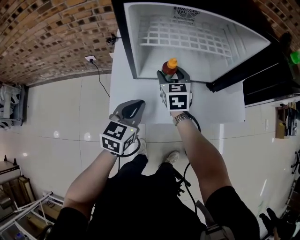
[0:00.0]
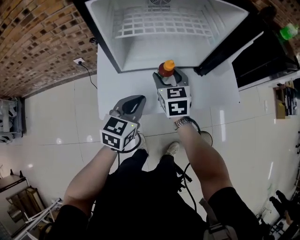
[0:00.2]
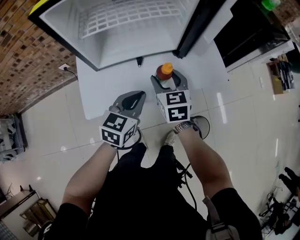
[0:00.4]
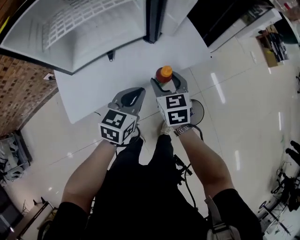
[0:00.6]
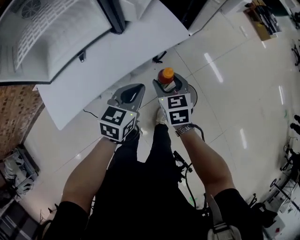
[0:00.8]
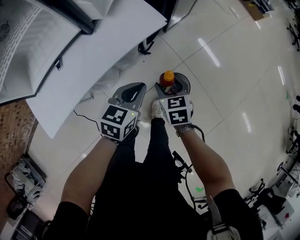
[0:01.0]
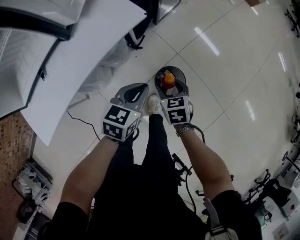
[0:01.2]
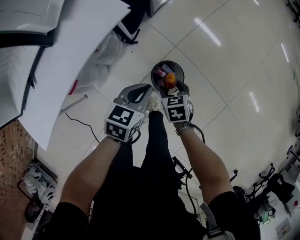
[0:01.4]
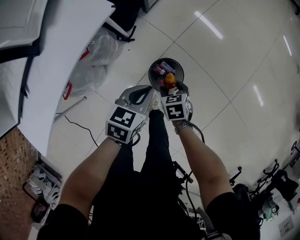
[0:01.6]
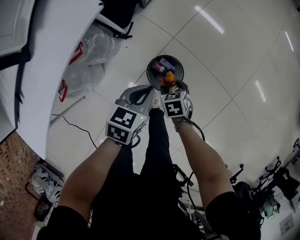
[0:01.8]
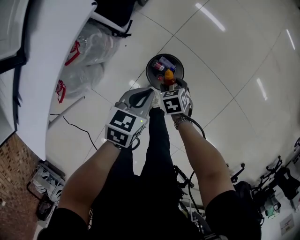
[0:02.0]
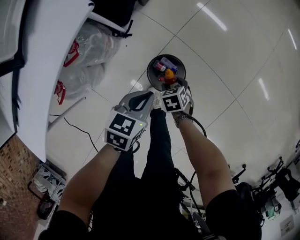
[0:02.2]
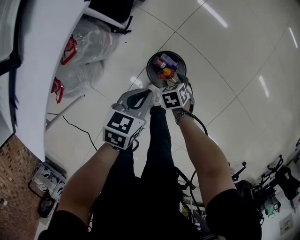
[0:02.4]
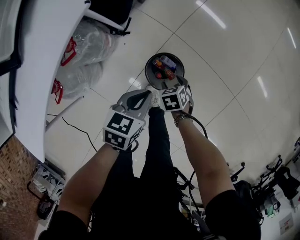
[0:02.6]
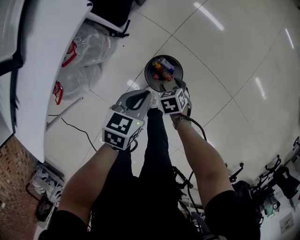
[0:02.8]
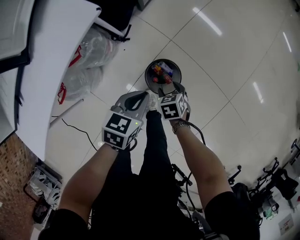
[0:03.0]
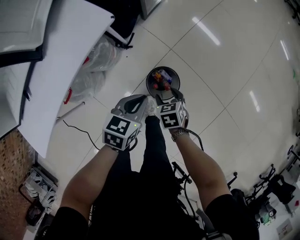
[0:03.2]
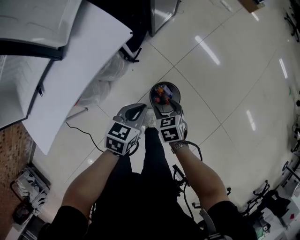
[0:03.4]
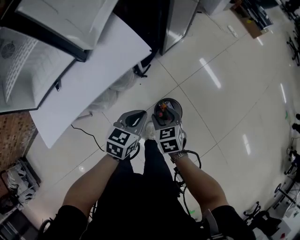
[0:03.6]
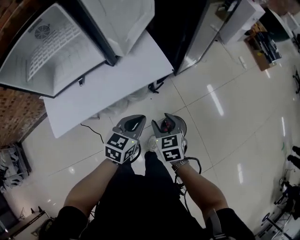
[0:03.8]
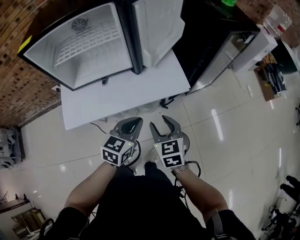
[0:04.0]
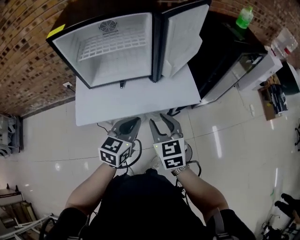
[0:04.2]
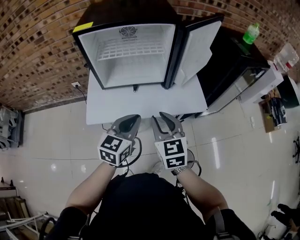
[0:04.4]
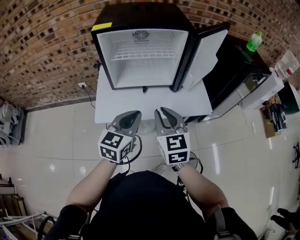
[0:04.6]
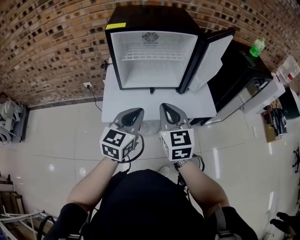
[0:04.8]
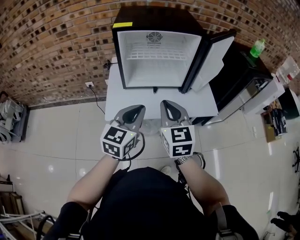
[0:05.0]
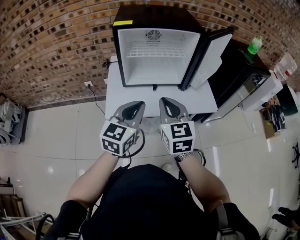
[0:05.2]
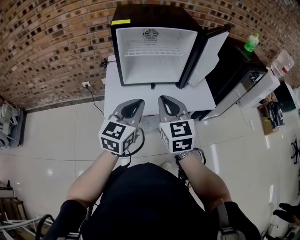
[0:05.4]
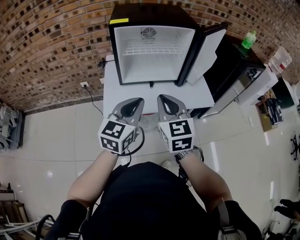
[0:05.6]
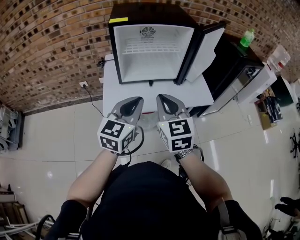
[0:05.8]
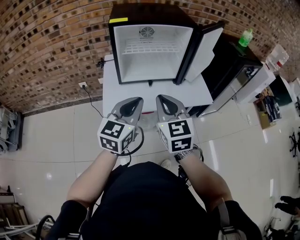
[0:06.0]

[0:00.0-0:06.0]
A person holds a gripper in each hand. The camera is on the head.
0:00.0 to 0:01.6: The pair of grippers is taken approximately 60 cm. The right gripper tilts its fingers roughly 30 degrees downward. Meanwhile the left gripper rotates approximately 60 degrees.
0:03.0 to 0:04.4: The two grippers go about 40 cm upward. The right gripper tilts its fingers roughly 50 degrees upward, and closes its fingers, while the left gripper rotates approximately 60 degrees.
0:04.4 to 0:06.0: Both grippers move to the left, upward and backward, roughly 15 cm.

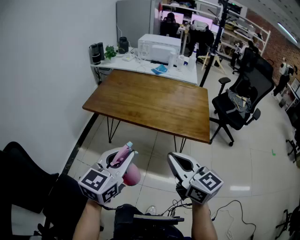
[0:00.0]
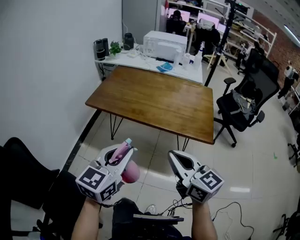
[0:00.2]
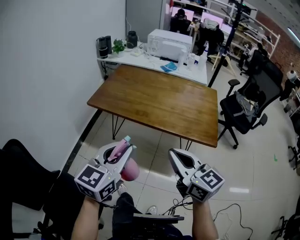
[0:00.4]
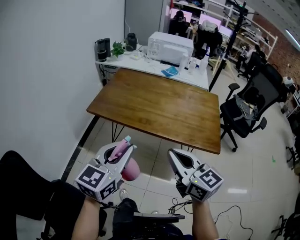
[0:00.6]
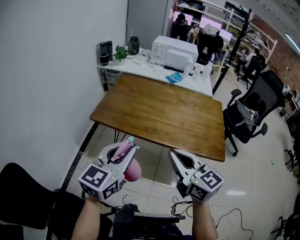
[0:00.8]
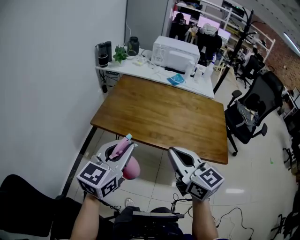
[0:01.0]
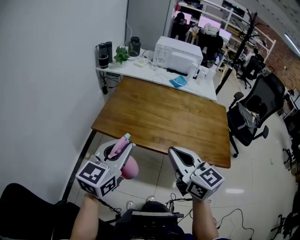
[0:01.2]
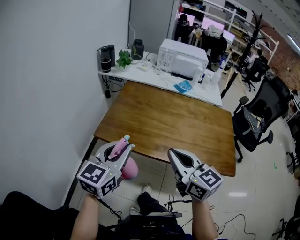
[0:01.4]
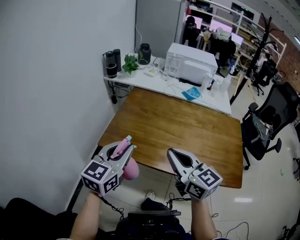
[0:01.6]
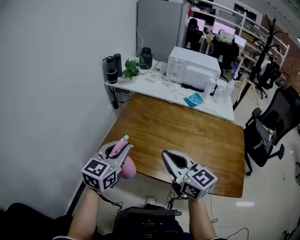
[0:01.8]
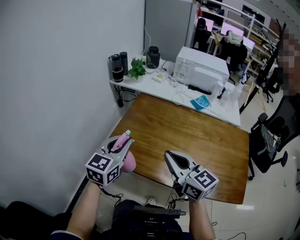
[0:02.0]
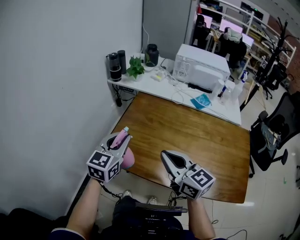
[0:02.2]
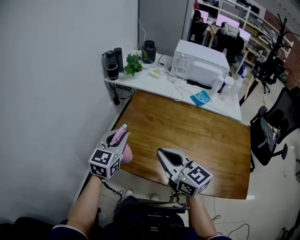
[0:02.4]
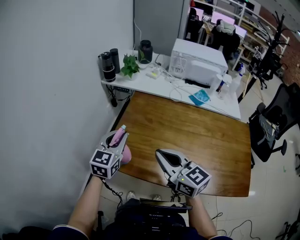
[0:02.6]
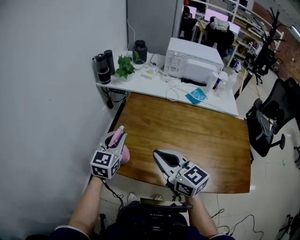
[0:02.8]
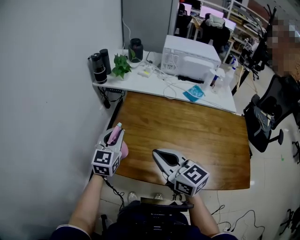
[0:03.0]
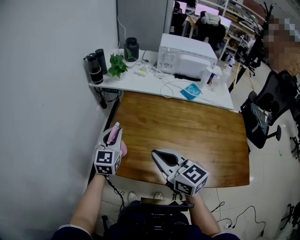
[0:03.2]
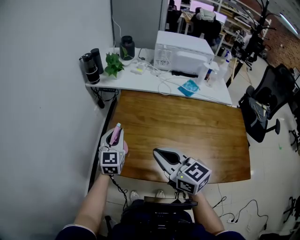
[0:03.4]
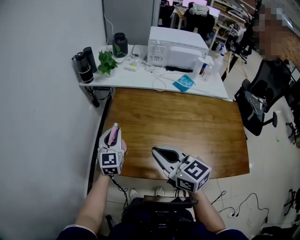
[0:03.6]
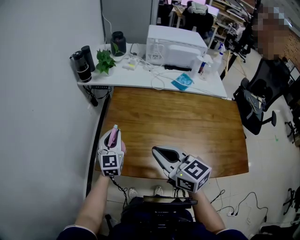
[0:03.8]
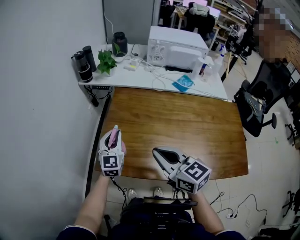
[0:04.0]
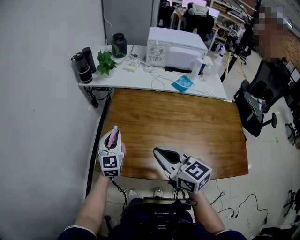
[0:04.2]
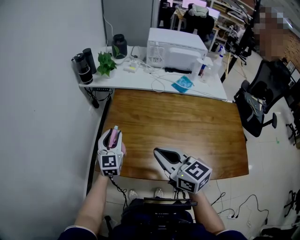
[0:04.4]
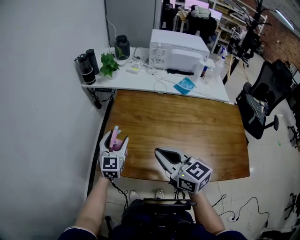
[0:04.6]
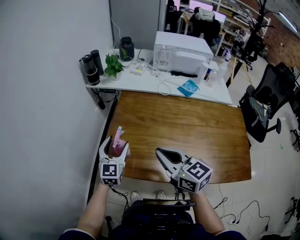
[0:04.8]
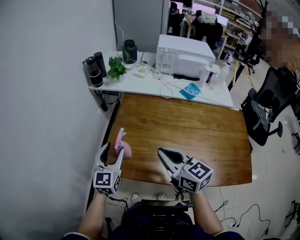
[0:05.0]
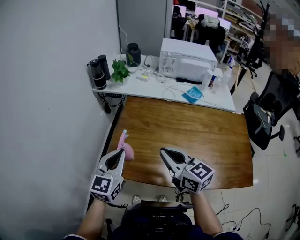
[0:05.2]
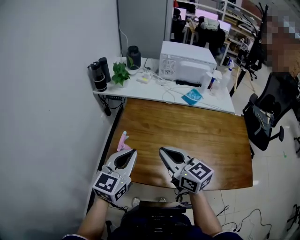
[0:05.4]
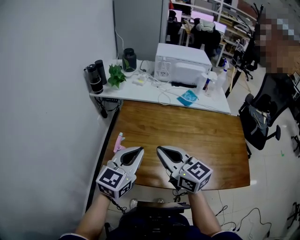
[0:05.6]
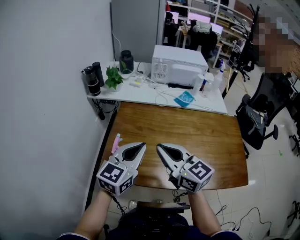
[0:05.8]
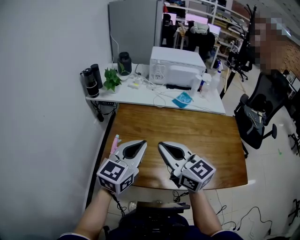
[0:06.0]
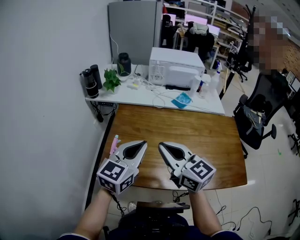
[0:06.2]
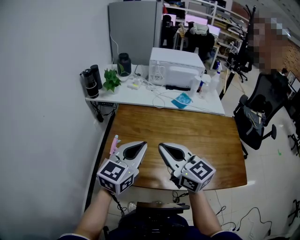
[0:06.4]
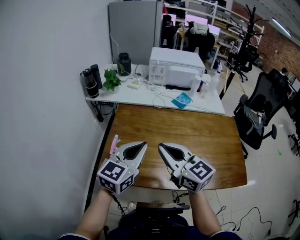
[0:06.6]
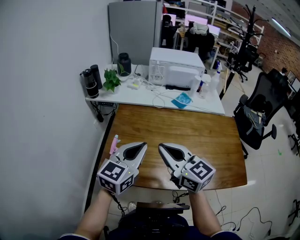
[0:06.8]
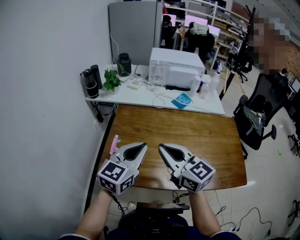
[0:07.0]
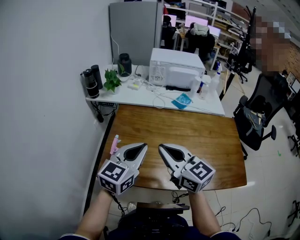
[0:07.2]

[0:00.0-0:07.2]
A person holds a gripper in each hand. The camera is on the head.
0:00.0 to 0:01.4: Both grippers travel together forward and to the left, approximately 35 cm.
0:01.4 to 0:02.8: Both grippers move forward, some 25 cm.
0:02.8 to 0:04.4: The left gripper shifts about 5 cm downward.
0:04.4 to 0:05.8: The right gripper travels upward by about 5 cm. Meanwhile the left gripper travels upward, backward and to the right by approximately 20 cm, turns by roughly 30 degrees, and closes up.
0:05.8 to 0:07.2: The grippers move only a little.

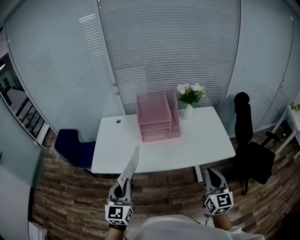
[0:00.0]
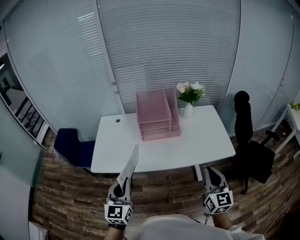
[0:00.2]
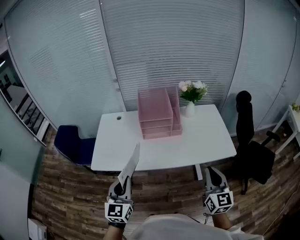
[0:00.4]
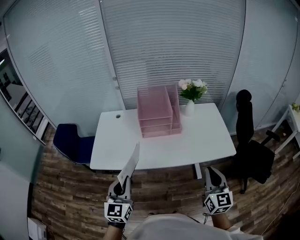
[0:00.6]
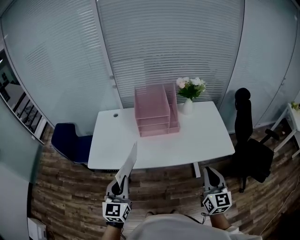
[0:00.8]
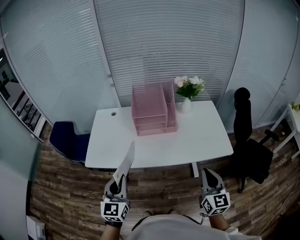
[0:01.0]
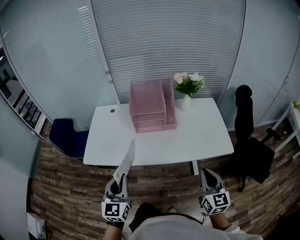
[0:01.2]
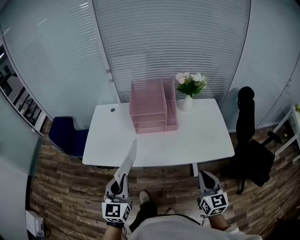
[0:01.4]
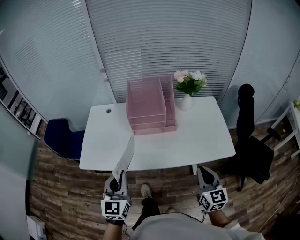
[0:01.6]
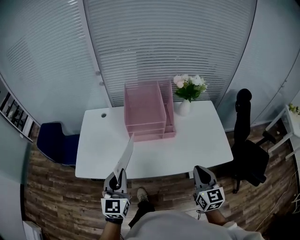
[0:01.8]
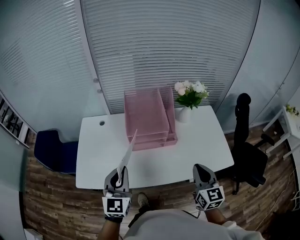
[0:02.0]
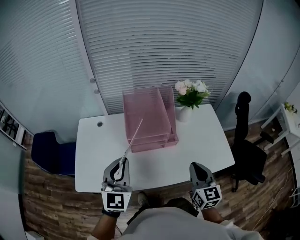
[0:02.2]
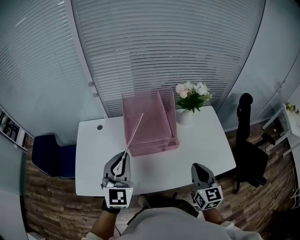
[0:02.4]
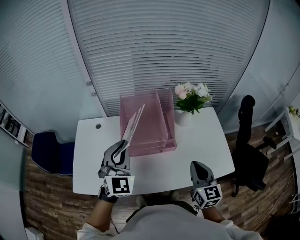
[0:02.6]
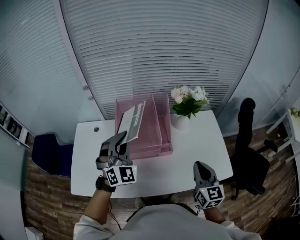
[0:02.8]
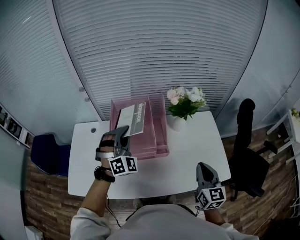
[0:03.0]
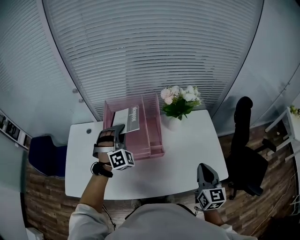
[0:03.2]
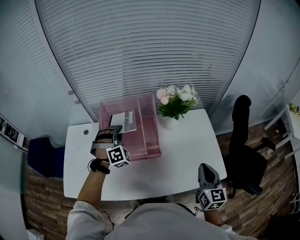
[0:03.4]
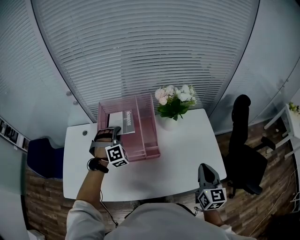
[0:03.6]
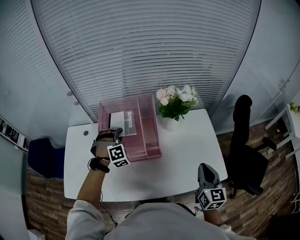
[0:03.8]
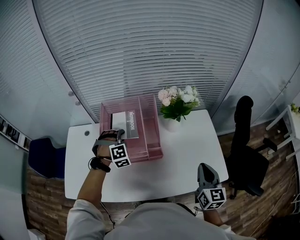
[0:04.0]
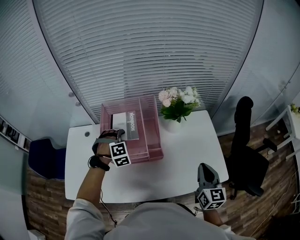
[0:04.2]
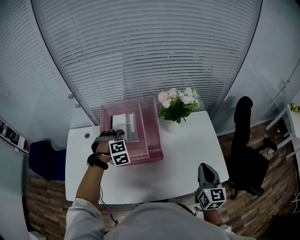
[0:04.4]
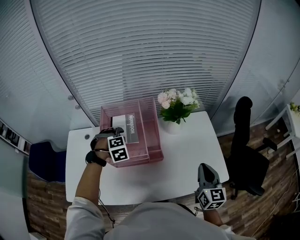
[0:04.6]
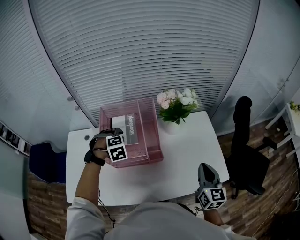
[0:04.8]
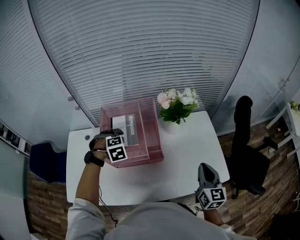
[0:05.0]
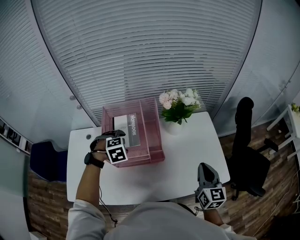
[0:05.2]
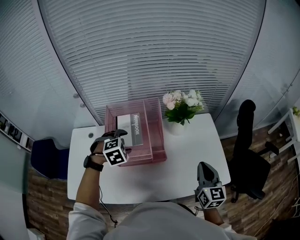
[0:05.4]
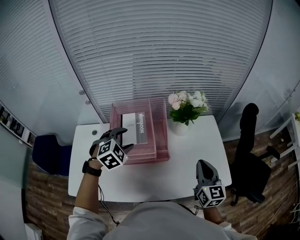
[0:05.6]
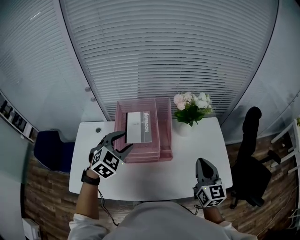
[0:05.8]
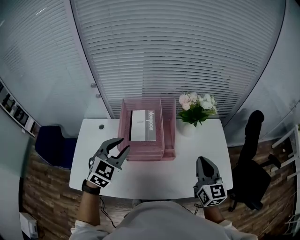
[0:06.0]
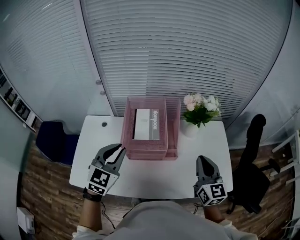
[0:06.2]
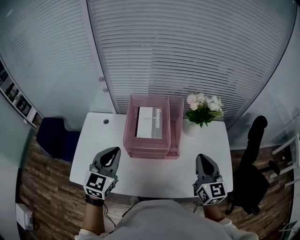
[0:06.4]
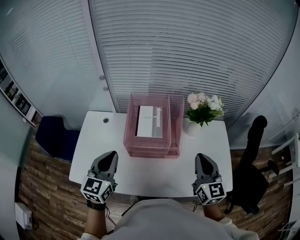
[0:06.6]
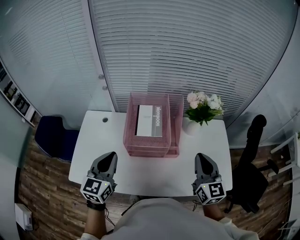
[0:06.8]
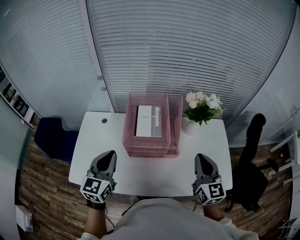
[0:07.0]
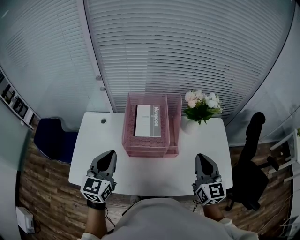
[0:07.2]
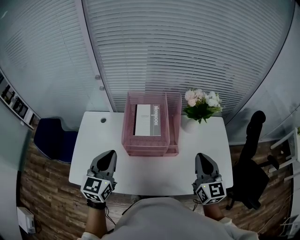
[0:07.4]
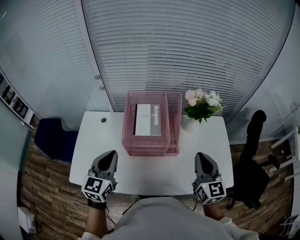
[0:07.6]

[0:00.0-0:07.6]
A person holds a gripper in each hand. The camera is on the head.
0:00.0 to 0:01.6: The left gripper goes some 10 cm forward; the right gripper travels forward and downward by approximately 10 cm.
0:01.6 to 0:03.0: The left gripper shifts approximately 40 cm forward, and rolls clockwise, seen from behind, by roughly 60 degrees, while the right gripper travels forward by some 20 cm.
0:03.0 to 0:04.6: The right gripper shifts approximately 5 cm to the right; the left gripper is displaced downward by roughly 15 cm, angles its fingers downward, by approximately 50 degrees, and opens.
0:04.6 to 0:06.0: The right gripper moves to the left and upward, approximately 10 cm. Meanwhile the left gripper travels upward and backward by some 20 cm, tilts its fingers roughly 40 degrees upward, and closes up.
0:06.0 to 0:07.6: The left gripper travels to the left and backward by some 10 cm, rotates roughly 30 degrees, and closes up.

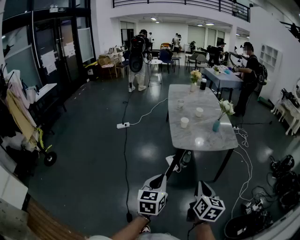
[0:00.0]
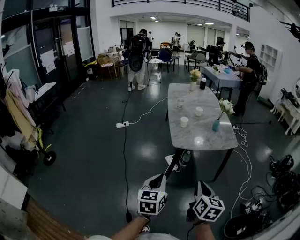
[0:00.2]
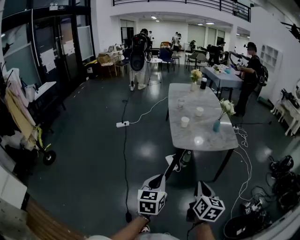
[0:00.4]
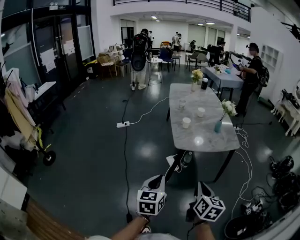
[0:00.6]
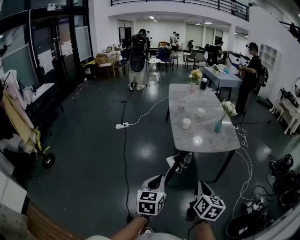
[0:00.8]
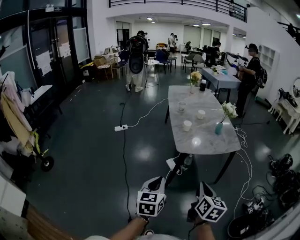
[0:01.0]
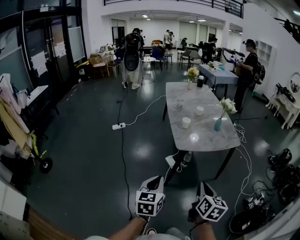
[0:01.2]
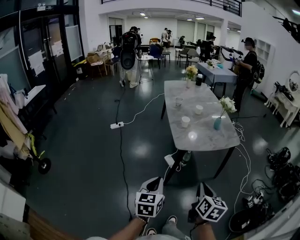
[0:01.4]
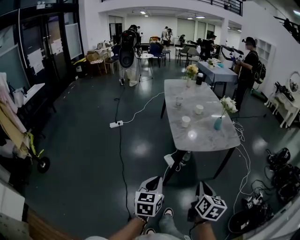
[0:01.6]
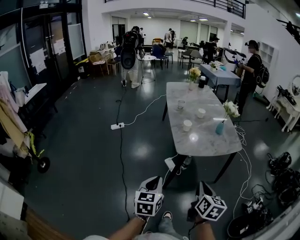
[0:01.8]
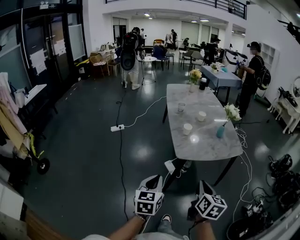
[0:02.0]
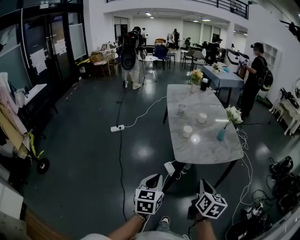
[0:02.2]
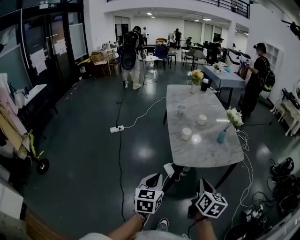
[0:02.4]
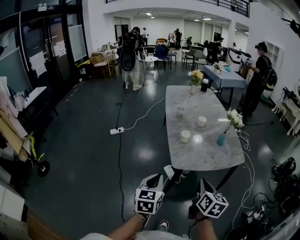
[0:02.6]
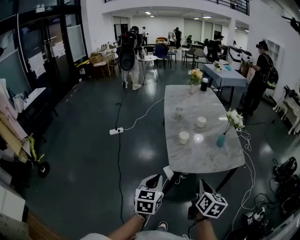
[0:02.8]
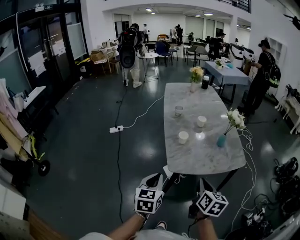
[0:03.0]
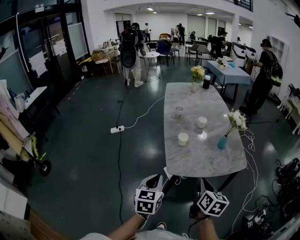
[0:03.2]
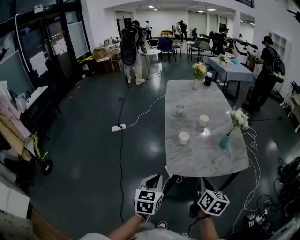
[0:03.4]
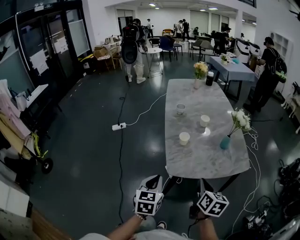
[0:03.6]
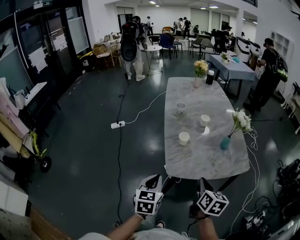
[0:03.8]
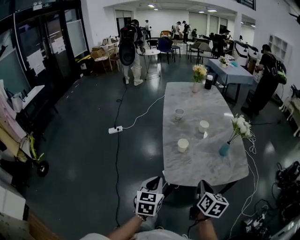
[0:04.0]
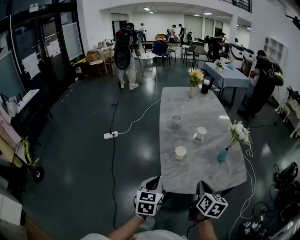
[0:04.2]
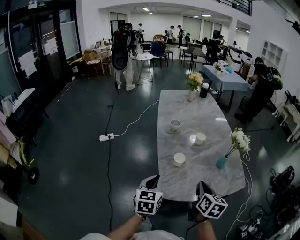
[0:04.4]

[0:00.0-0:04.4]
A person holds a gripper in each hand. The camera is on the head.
0:00.0 to 0:01.4: The two grippers go roughly 5 cm to the left.
0:01.4 to 0:03.0: The grippers both shift forward by about 25 cm.
0:03.0 to 0:04.4: The grippers both shift forward by roughly 20 cm.
